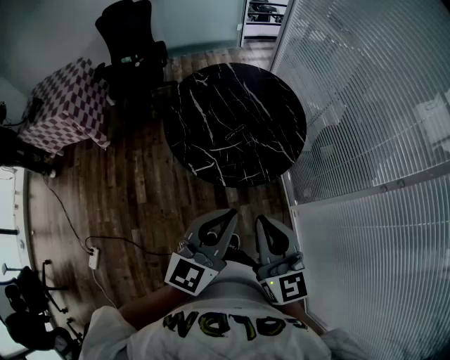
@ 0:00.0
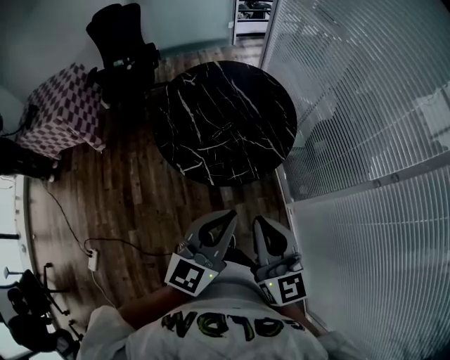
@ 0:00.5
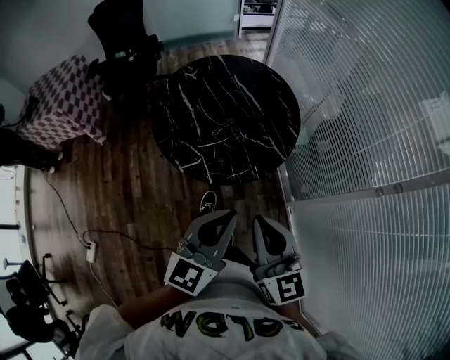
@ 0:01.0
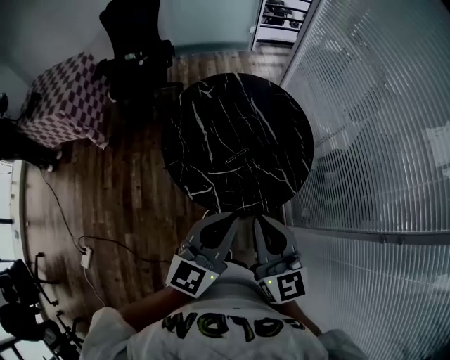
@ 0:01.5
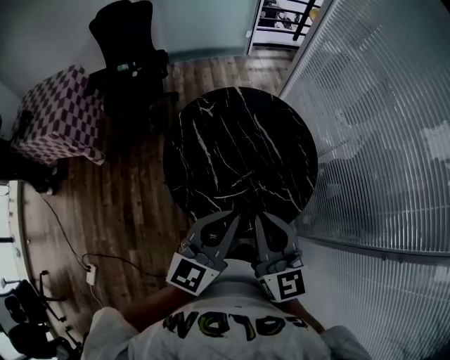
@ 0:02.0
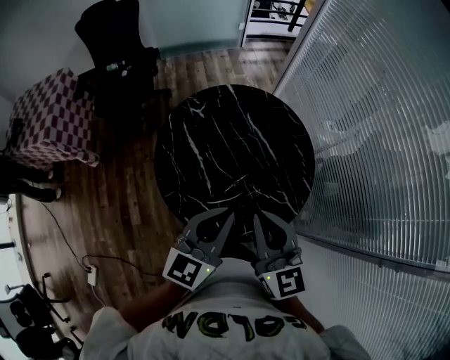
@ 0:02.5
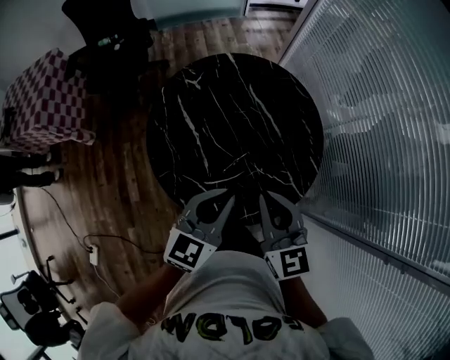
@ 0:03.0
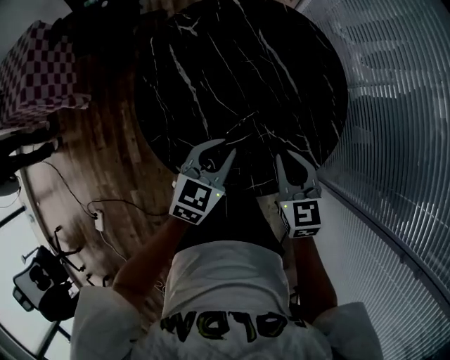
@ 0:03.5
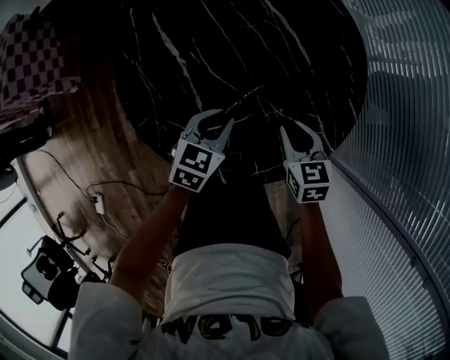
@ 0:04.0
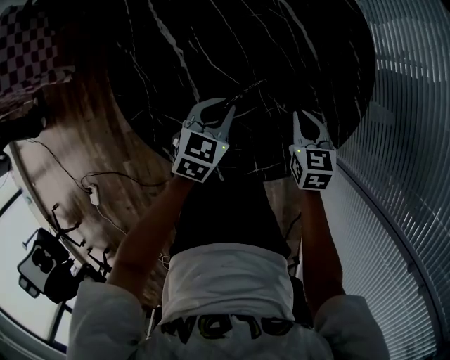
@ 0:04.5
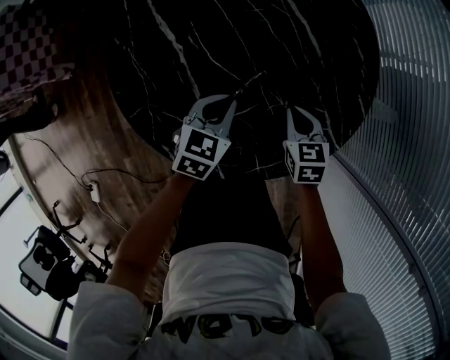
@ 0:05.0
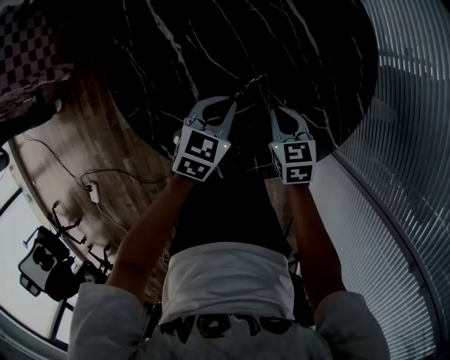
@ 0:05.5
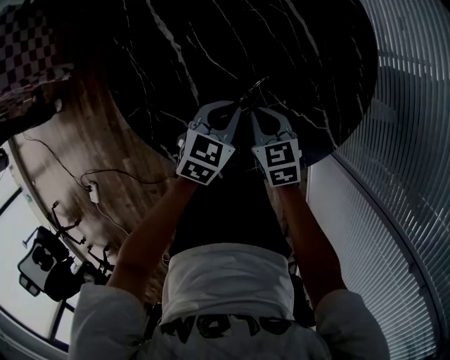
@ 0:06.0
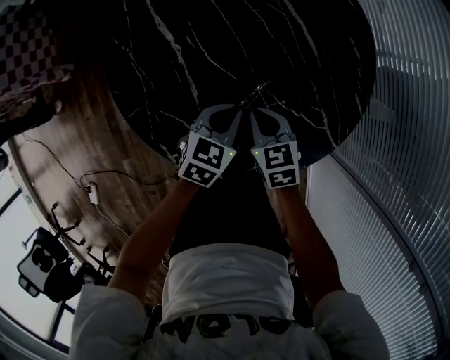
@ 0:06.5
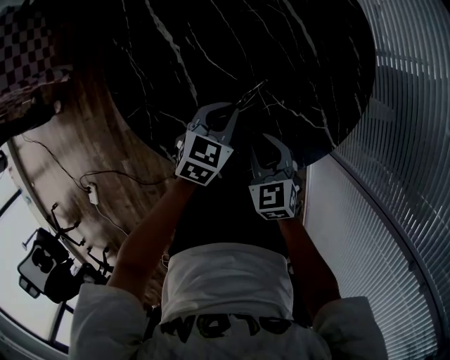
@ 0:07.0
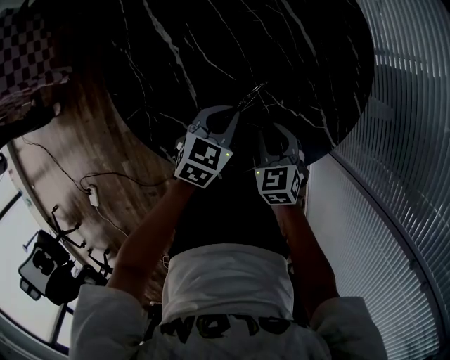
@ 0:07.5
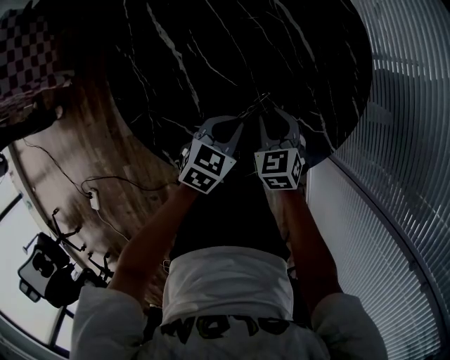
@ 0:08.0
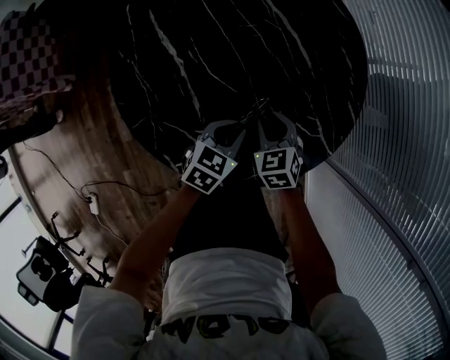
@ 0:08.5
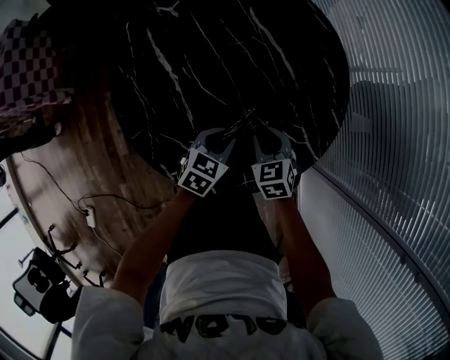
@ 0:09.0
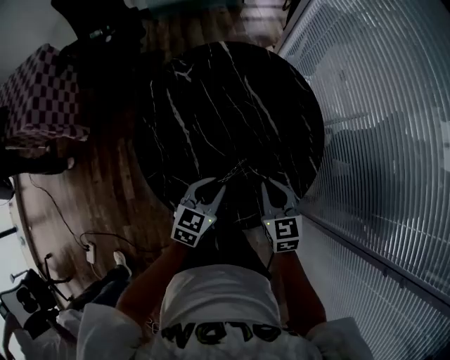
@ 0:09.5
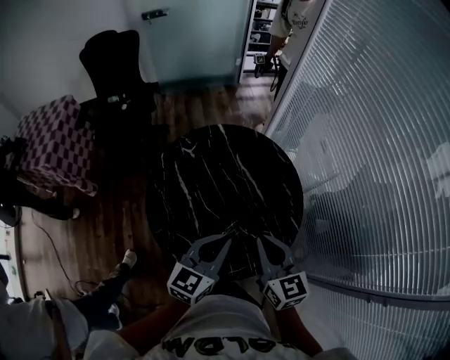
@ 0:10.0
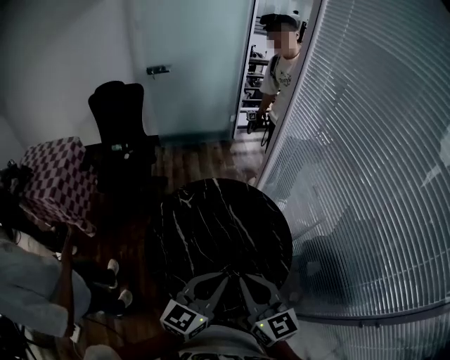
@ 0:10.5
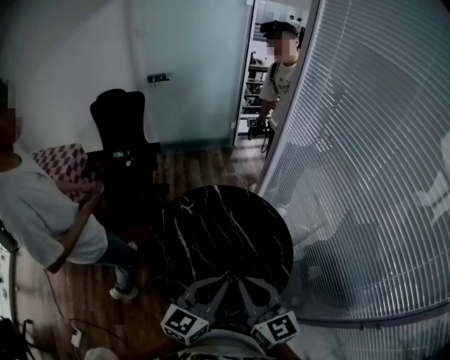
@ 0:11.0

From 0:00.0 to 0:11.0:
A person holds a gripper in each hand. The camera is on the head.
From 0:00.0 to 0:02.0: Both grippers travel together forward, some 25 cm.
From 0:02.0 to 0:03.5: Both grippers move downward and forward, roughly 30 cm. The right gripper turns by some 30 degrees; the left gripper angles its fingers downward, by some 30 degrees.
From 0:03.5 to 0:05.5: Both grippers move downward, roughly 20 cm.
From 0:05.5 to 0:07.5: The right gripper opens up.
From 0:09.0 to 0:11.0: The two grippers go some 50 cm upward. The right gripper points its fingers roughly 50 degrees further upward, and closes its fingers, while the left gripper points its fingers approximately 40 degrees further upward.

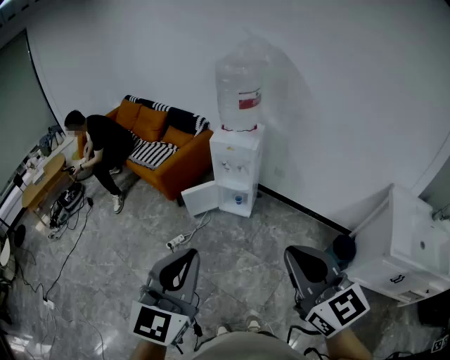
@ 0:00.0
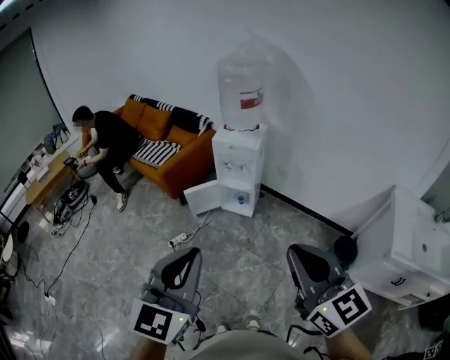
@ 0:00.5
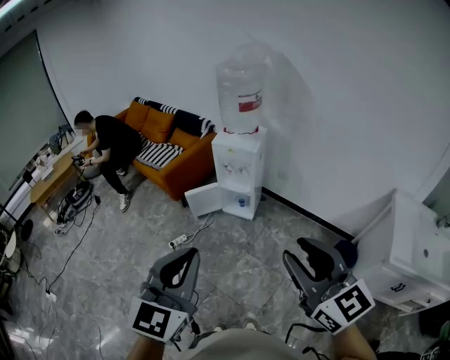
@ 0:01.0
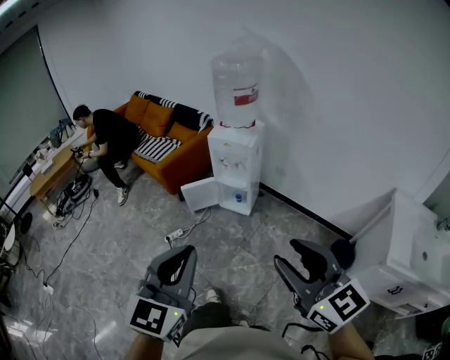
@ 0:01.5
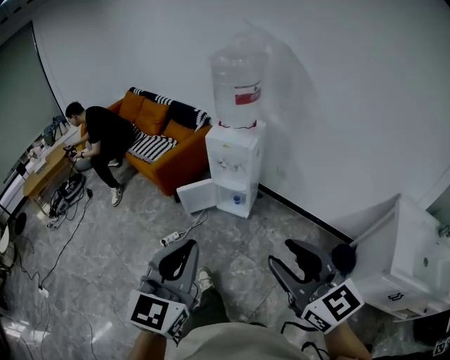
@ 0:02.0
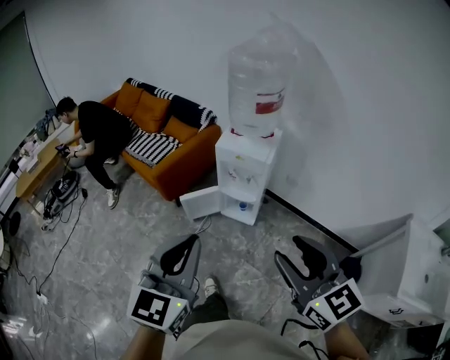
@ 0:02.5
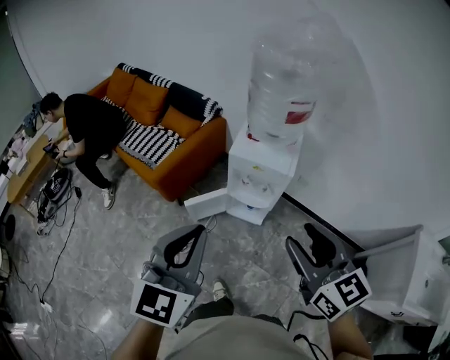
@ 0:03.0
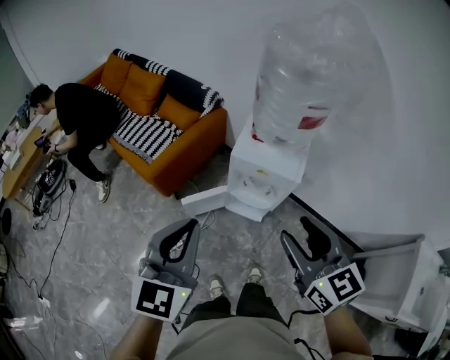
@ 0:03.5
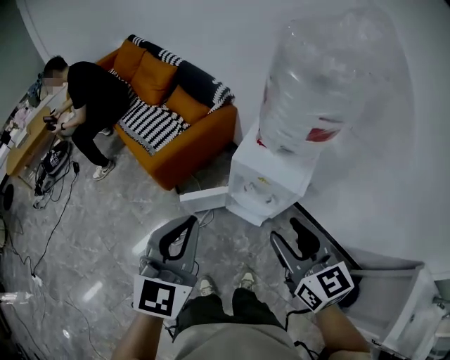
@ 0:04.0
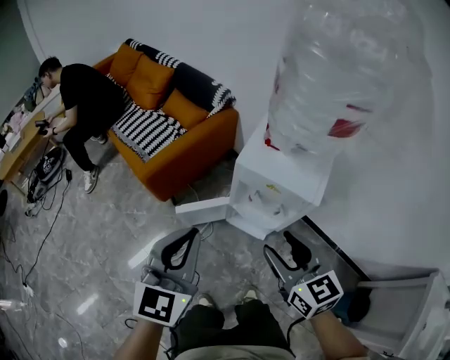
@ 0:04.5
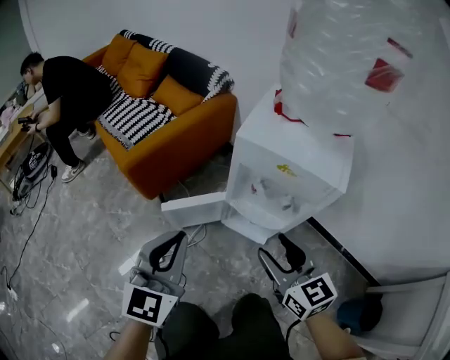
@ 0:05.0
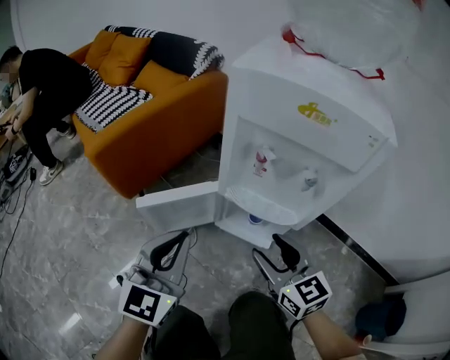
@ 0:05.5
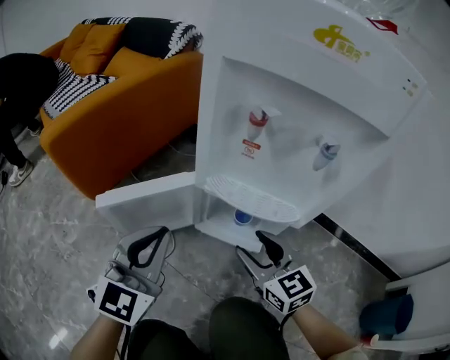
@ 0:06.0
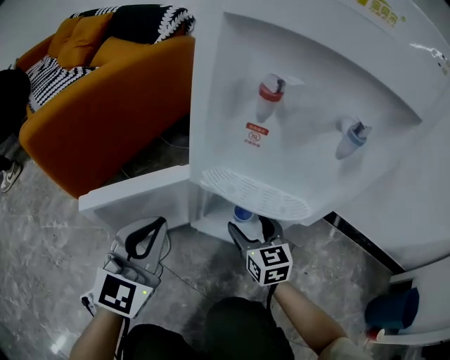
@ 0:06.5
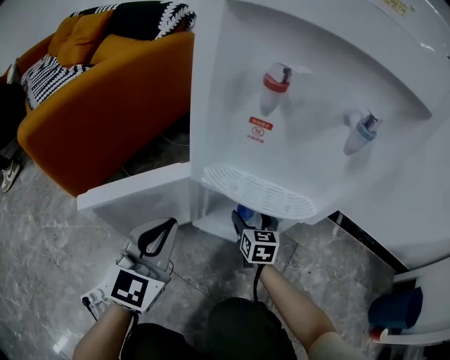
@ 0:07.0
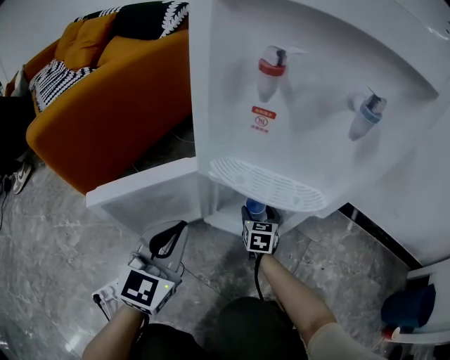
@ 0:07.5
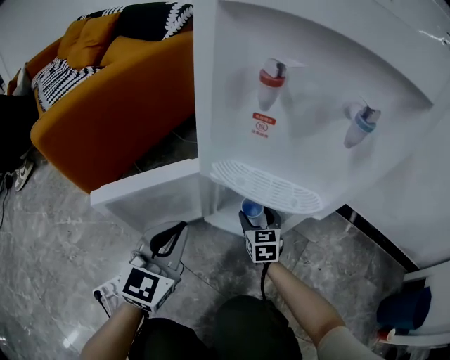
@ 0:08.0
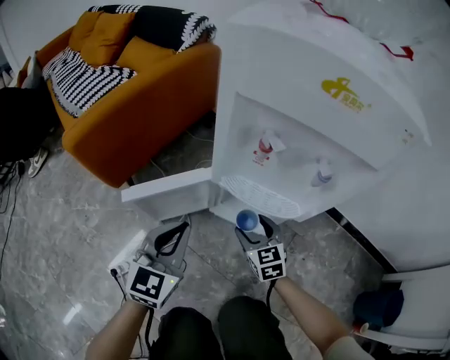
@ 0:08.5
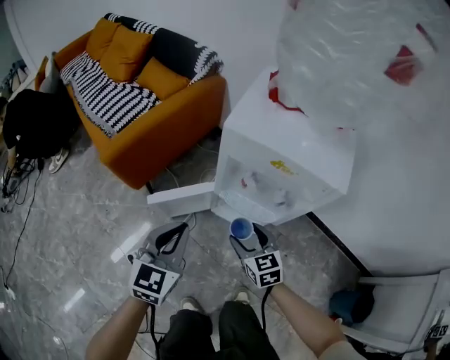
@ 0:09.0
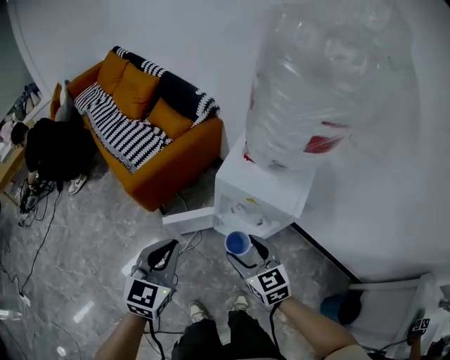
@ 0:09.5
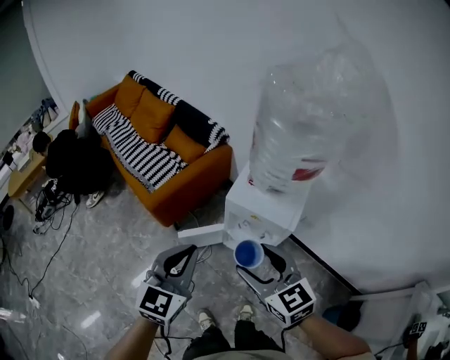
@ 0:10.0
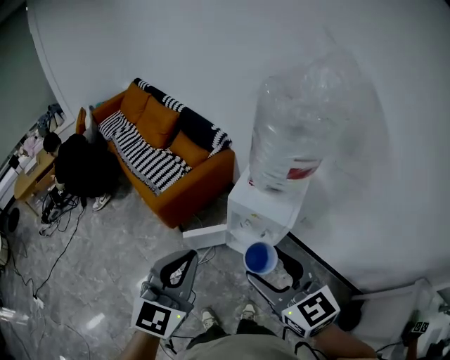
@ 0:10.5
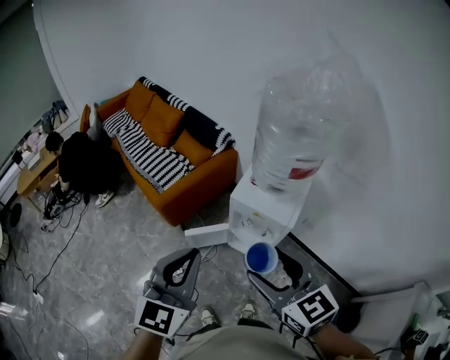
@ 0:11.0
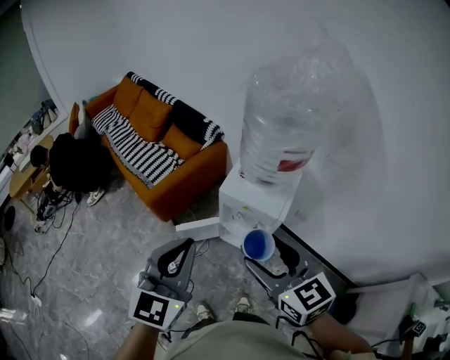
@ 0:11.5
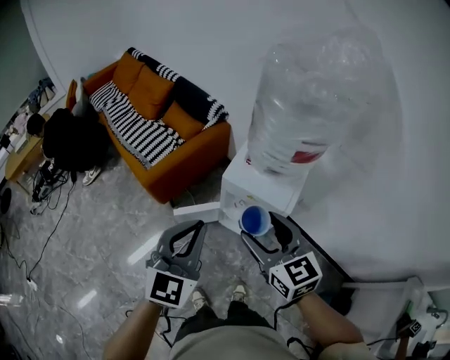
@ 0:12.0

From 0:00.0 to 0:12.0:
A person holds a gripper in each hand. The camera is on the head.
From 0:00.0 to 0:02.0: The right gripper shifts roughly 10 cm forward, to the right and downward, and opens up; the left gripper goes about 10 cm to the right and forward.
From 0:02.0 to 0:04.0: Both grippers are carried forward, some 50 cm.
From 0:04.0 to 0:06.0: Both grippers travel together downward, some 60 cm.
From 0:06.0 to 0:08.0: The left gripper heads downward, covering roughly 10 cm, while the right gripper heads downward and forward, covering roughly 25 cm, and rotates roughly 20 degrees.
From 0:08.0 to 0:10.0: Both grippers travel together upward, some 80 cm. The right gripper turns by some 30 degrees.
From 0:10.0 to 0:12.0: The left gripper goes upward and returns, roughly 10 cm each way. The right gripper moves roughly 10 cm upward and comes back.

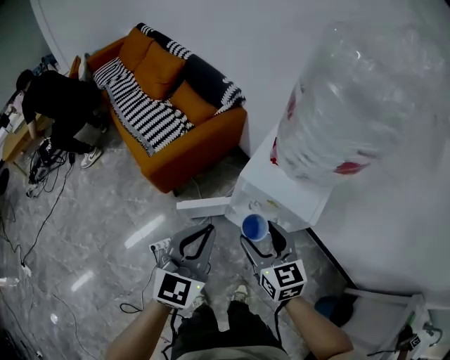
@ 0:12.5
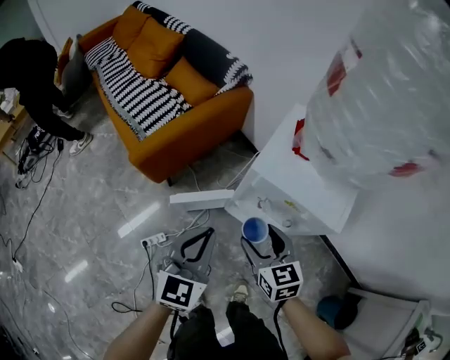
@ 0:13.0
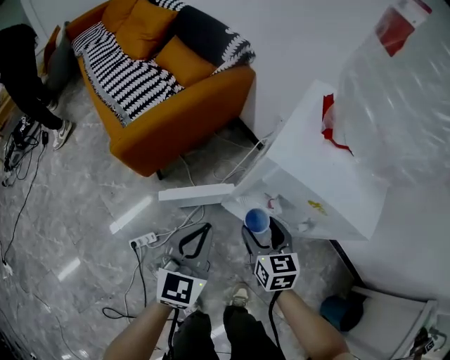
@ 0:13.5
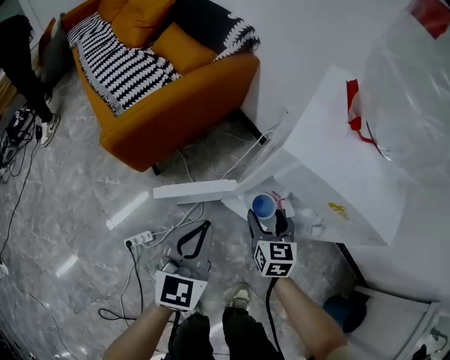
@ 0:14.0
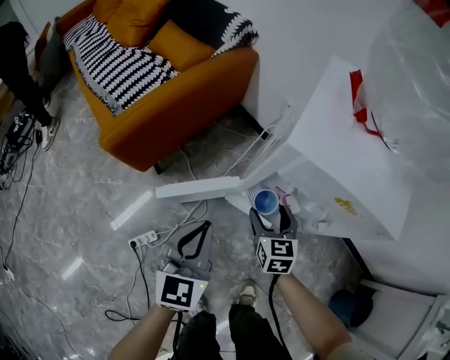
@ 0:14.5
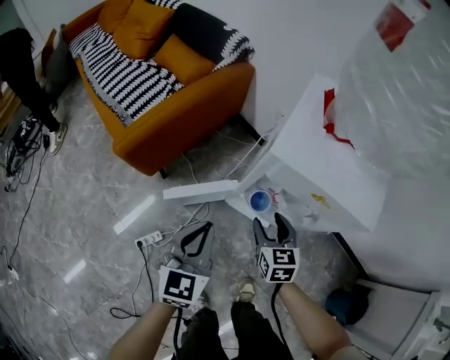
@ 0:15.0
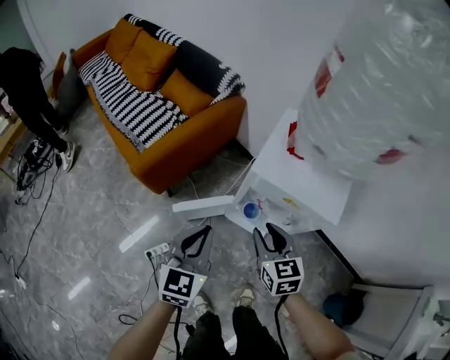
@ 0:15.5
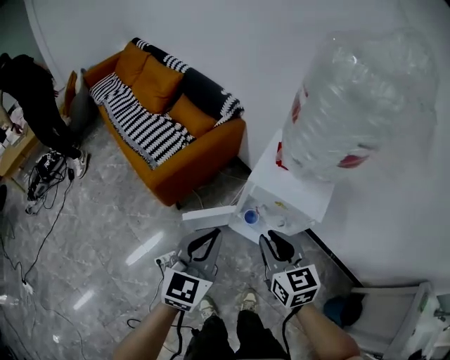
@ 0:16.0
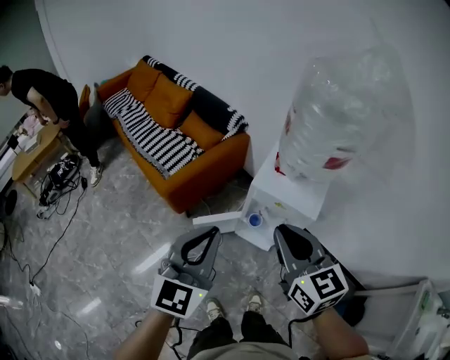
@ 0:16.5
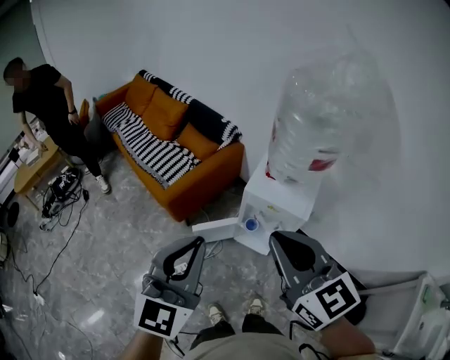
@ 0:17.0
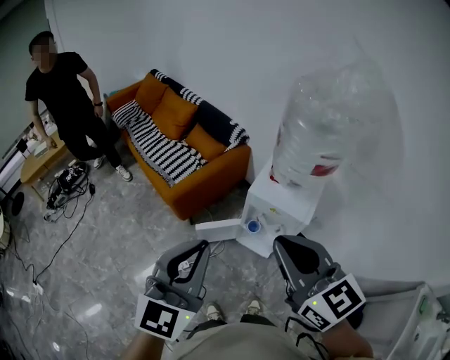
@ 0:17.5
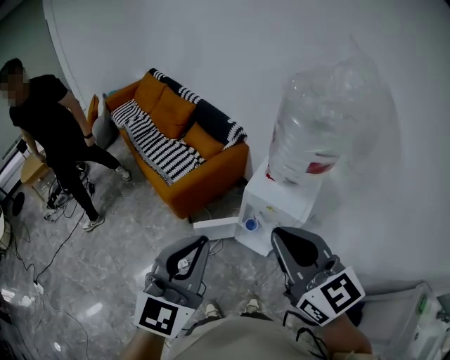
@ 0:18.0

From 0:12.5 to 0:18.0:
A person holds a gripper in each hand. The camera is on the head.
From 0:12.5 to 0:14.5: Both grippers move downward, approximately 35 cm. The right gripper rotates about 20 degrees.
From 0:14.5 to 0:16.0: The two grippers go approximately 35 cm upward. The right gripper closes.
From 0:16.0 to 0:18.0: The right gripper moves upward, about 30 cm, and turns by roughly 20 degrees, while the left gripper is displaced upward and backward by about 30 cm.
